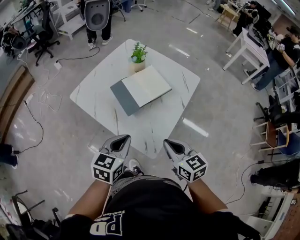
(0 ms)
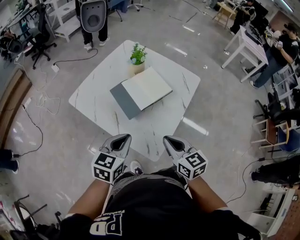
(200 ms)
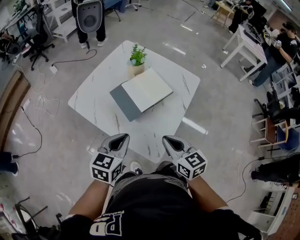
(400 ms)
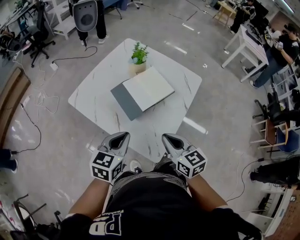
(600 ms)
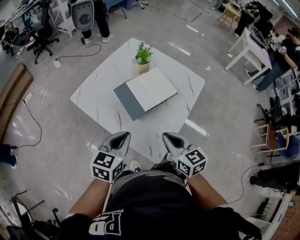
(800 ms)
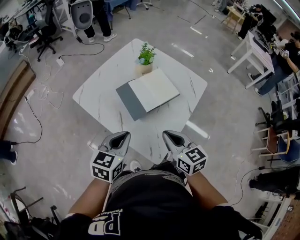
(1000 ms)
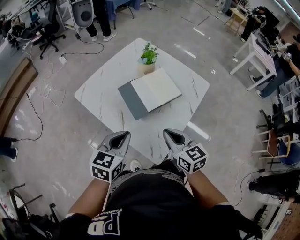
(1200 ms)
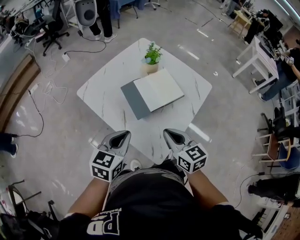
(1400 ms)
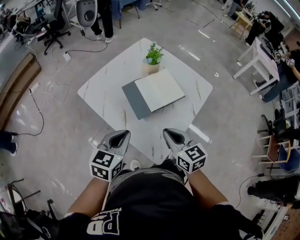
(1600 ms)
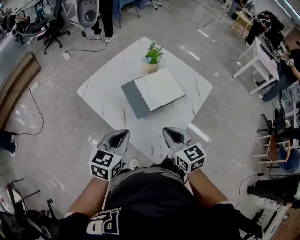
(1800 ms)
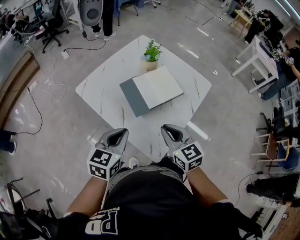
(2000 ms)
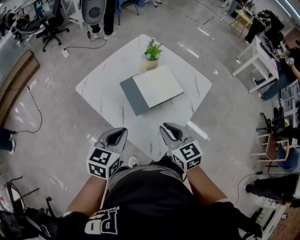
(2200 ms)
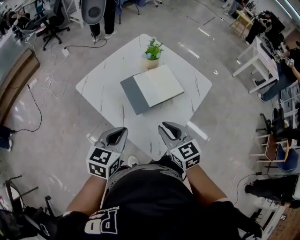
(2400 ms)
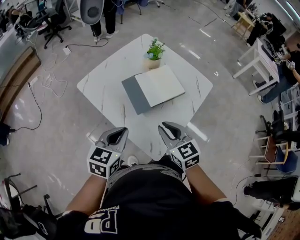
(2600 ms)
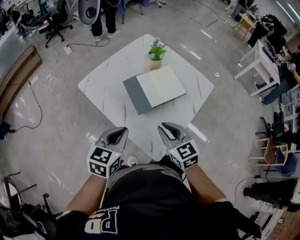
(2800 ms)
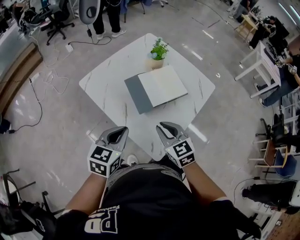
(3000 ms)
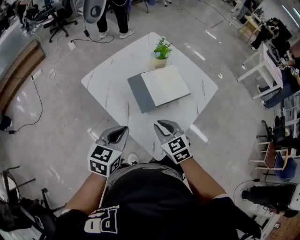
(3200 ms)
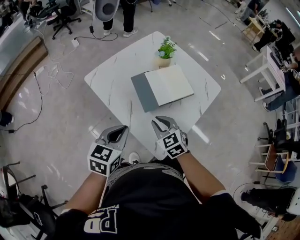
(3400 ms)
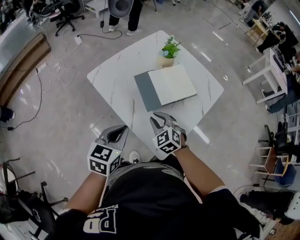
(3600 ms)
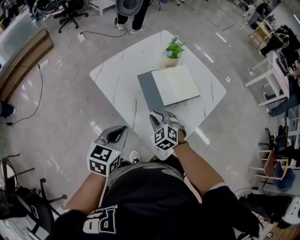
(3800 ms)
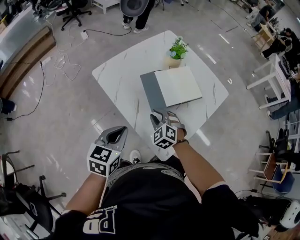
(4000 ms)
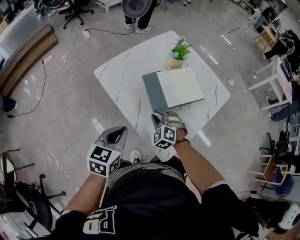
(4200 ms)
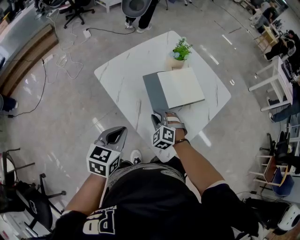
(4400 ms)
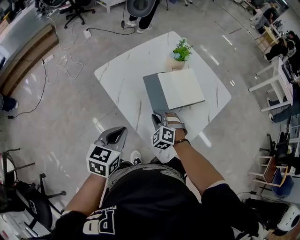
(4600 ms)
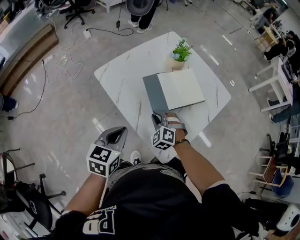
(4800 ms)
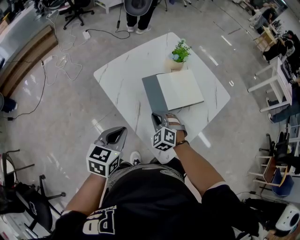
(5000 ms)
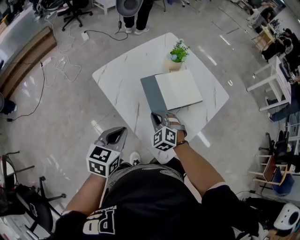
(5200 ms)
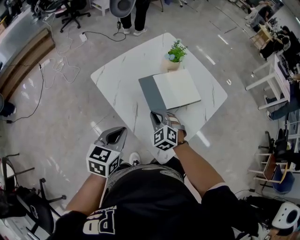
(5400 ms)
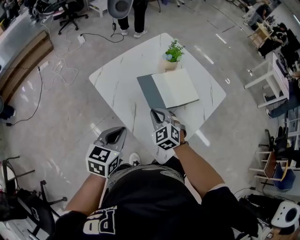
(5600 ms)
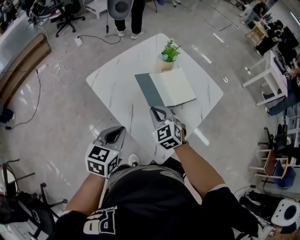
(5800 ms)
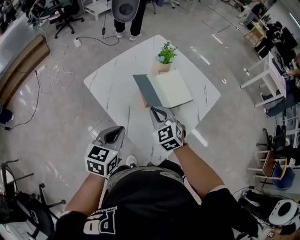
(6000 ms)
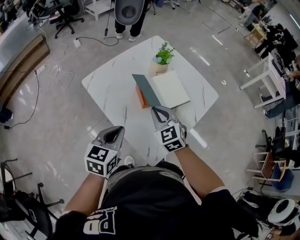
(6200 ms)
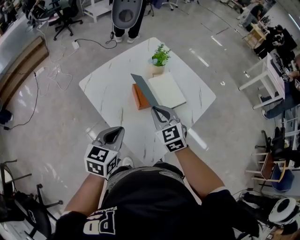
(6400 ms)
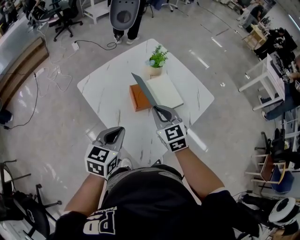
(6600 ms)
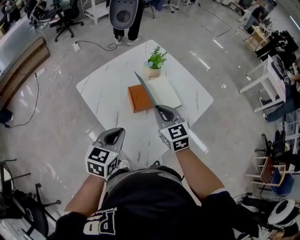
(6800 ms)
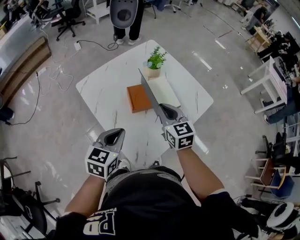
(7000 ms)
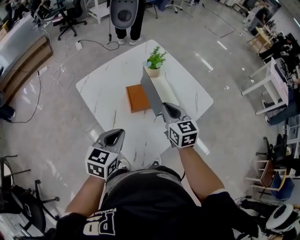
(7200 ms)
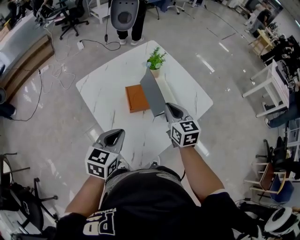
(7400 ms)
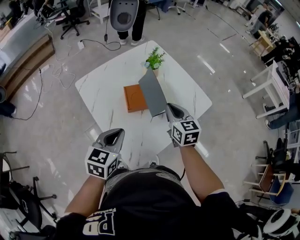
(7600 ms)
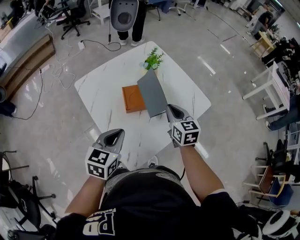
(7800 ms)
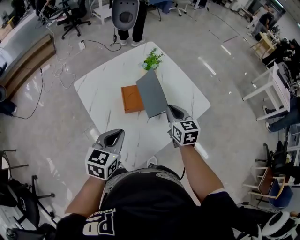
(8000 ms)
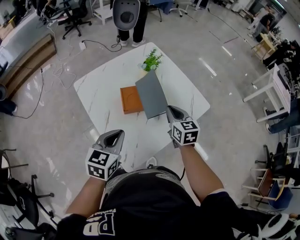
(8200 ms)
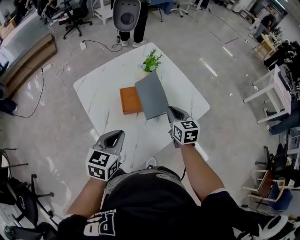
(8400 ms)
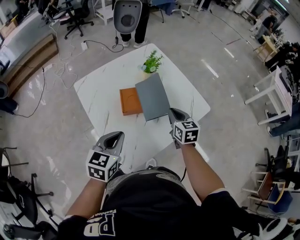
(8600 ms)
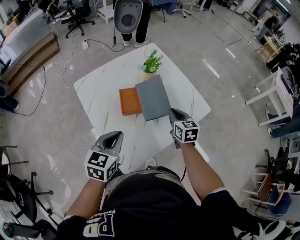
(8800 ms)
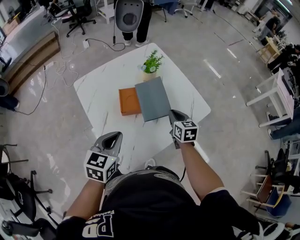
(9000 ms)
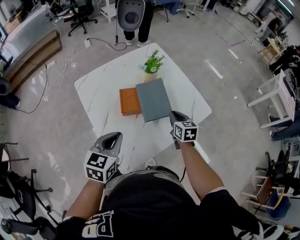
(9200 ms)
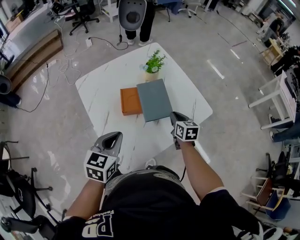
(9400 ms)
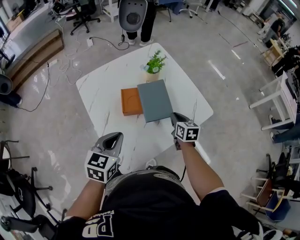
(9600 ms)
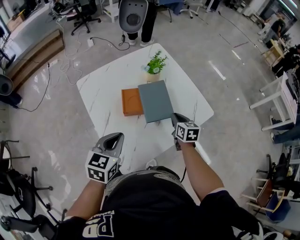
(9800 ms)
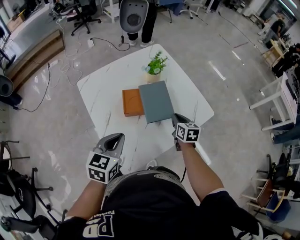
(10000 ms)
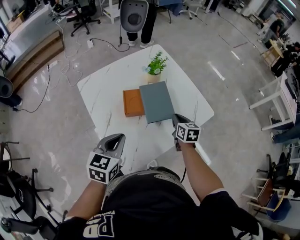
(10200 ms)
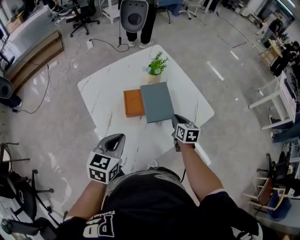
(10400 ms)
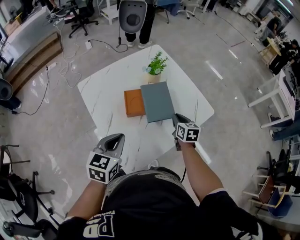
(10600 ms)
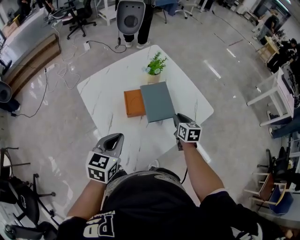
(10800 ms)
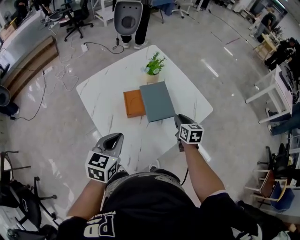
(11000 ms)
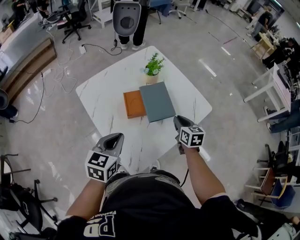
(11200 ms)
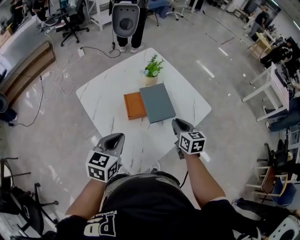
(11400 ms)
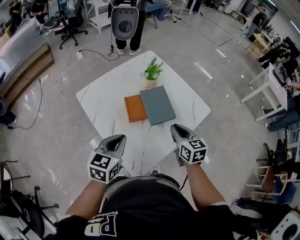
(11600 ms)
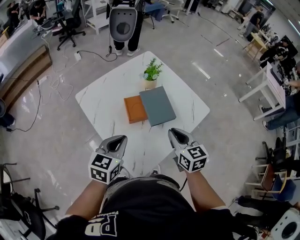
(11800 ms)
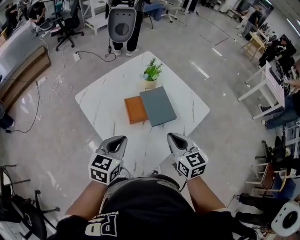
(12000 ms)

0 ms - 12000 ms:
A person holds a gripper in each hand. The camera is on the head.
0 ms - 1600 ms: The right gripper heads forward, covering some 10 cm. The left gripper moves about 5 cm.
1600 ms - 3000 ms: The grippers stay close to where they were, moving slightly.
3000 ms - 4400 ms: The right gripper heads downward, to the left and forward, covering roughly 15 cm, and rotates around the line of its fingers by roughly 40 degrees, counterclockwise from behind; the left gripper heads to the left, covering roughly 5 cm.
4400 ms - 6000 ms: The right gripper is displaced upward by roughly 10 cm, and rotates approximately 30 degrees.
6000 ms - 7600 ms: The left gripper heads to the right, covering about 10 cm. The right gripper moves to the right, roughly 20 cm, and rotates about 30 degrees.
7600 ms - 9000 ms: The right gripper goes approximately 10 cm downward and to the right.
9000 ms - 10400 ms: The grippers make only small movements.
10400 ms - 12000 ms: The right gripper moves upward, backward and to the left, some 20 cm.

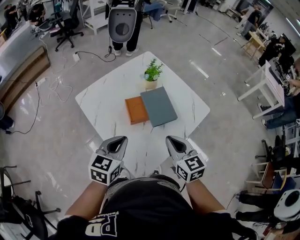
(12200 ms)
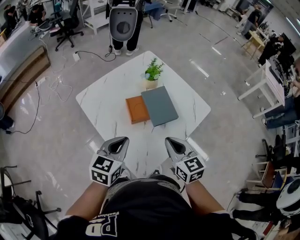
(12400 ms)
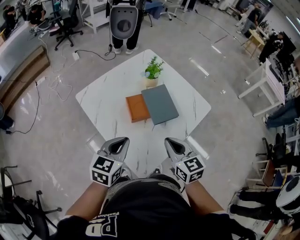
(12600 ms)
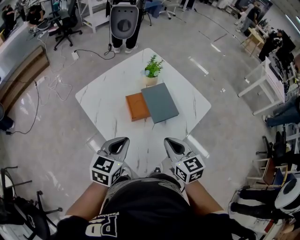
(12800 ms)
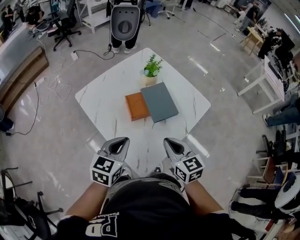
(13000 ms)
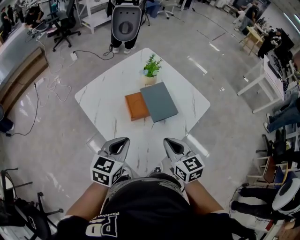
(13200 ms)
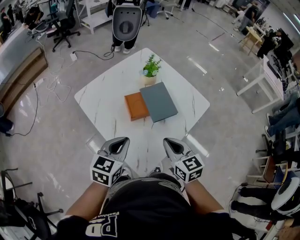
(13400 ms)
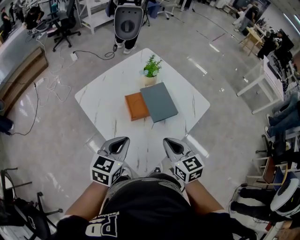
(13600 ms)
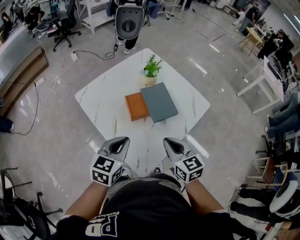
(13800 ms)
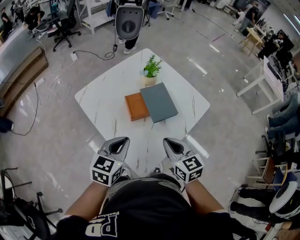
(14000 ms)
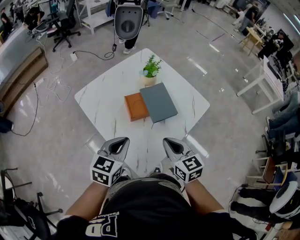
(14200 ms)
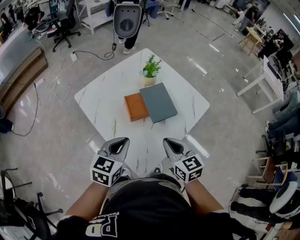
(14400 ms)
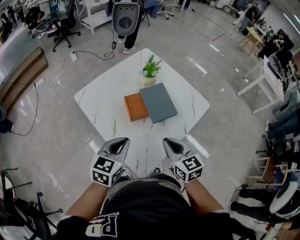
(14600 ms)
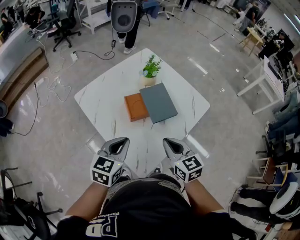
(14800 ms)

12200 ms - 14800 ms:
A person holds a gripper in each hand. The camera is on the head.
12200 ms - 13400 ms: The grippers move only a little.
13400 ms - 14800 ms: Both grippers stay about where they are.

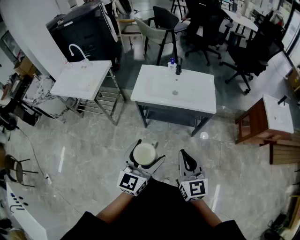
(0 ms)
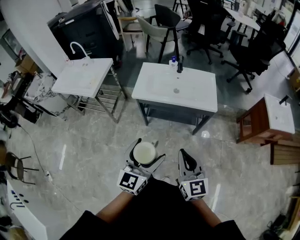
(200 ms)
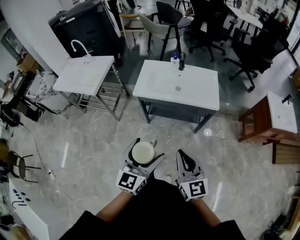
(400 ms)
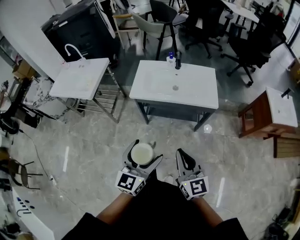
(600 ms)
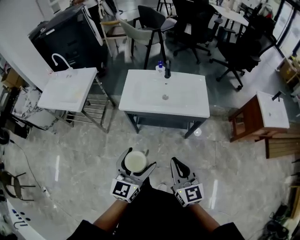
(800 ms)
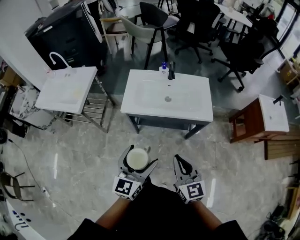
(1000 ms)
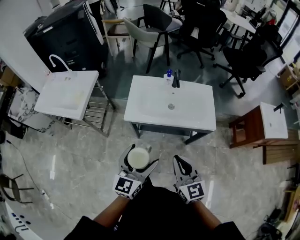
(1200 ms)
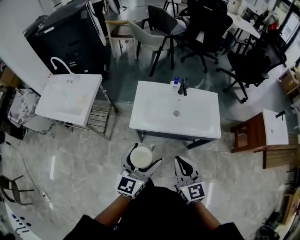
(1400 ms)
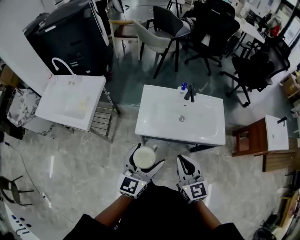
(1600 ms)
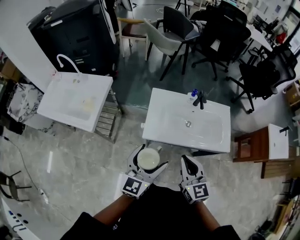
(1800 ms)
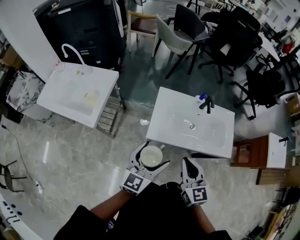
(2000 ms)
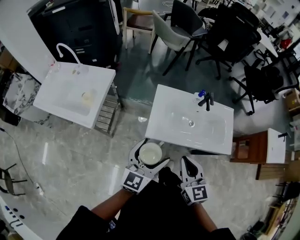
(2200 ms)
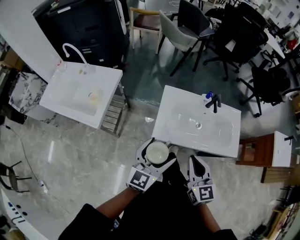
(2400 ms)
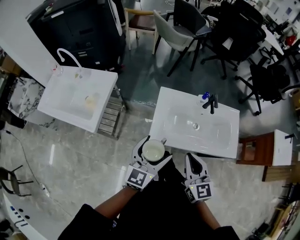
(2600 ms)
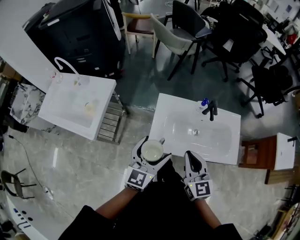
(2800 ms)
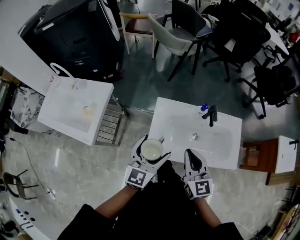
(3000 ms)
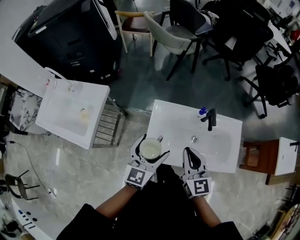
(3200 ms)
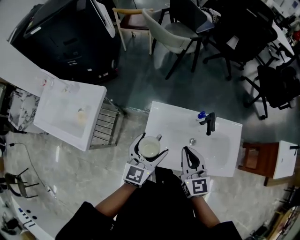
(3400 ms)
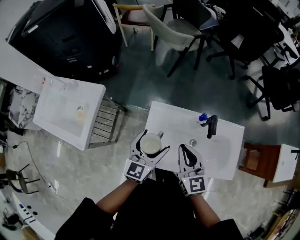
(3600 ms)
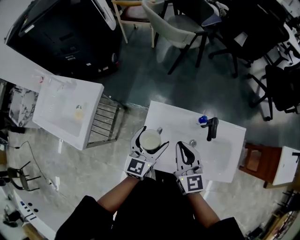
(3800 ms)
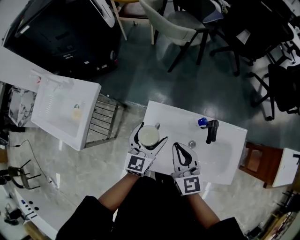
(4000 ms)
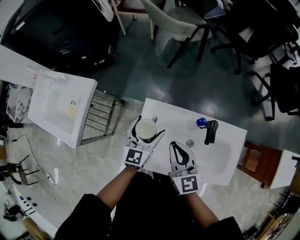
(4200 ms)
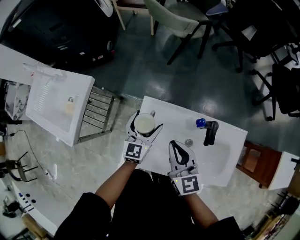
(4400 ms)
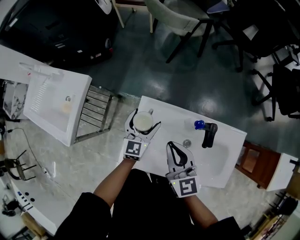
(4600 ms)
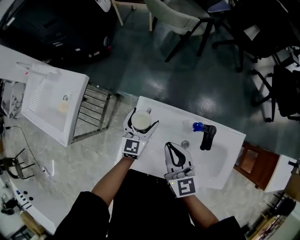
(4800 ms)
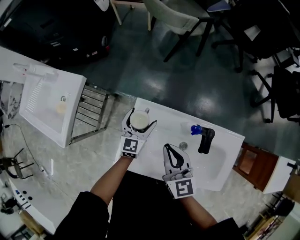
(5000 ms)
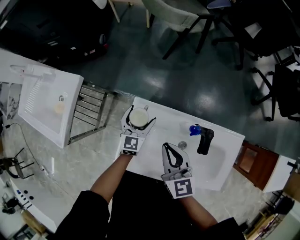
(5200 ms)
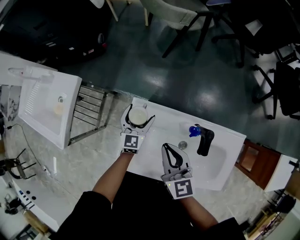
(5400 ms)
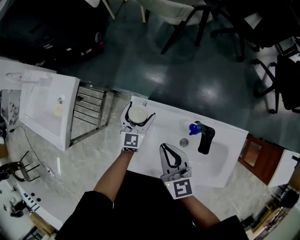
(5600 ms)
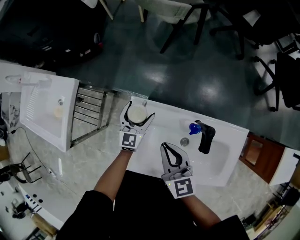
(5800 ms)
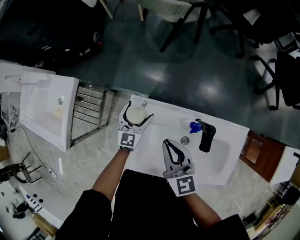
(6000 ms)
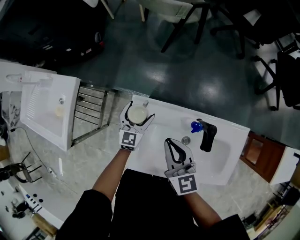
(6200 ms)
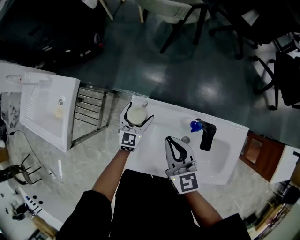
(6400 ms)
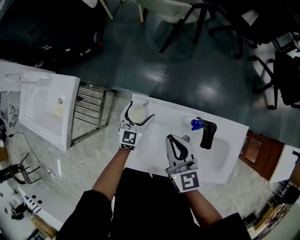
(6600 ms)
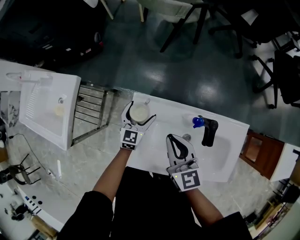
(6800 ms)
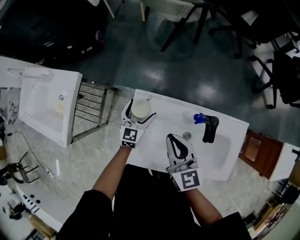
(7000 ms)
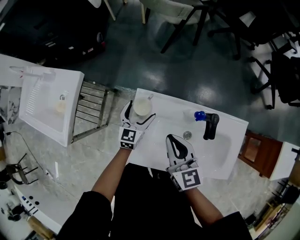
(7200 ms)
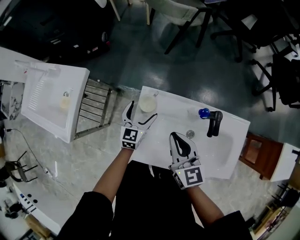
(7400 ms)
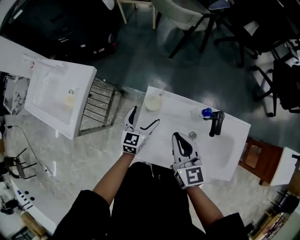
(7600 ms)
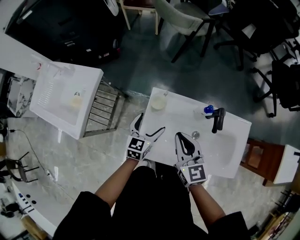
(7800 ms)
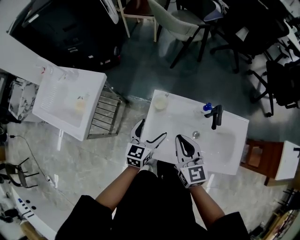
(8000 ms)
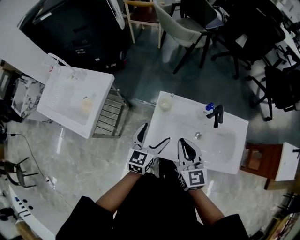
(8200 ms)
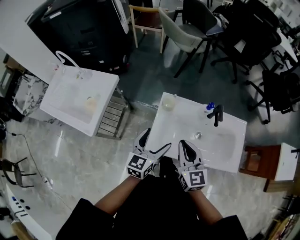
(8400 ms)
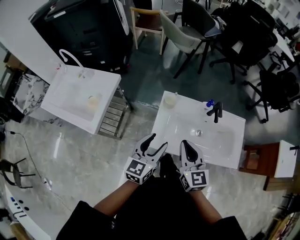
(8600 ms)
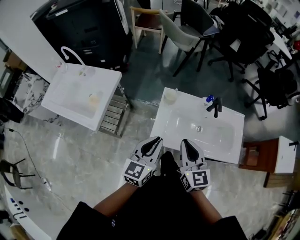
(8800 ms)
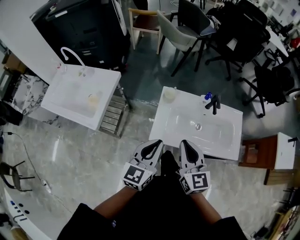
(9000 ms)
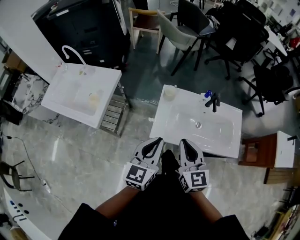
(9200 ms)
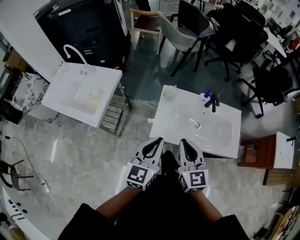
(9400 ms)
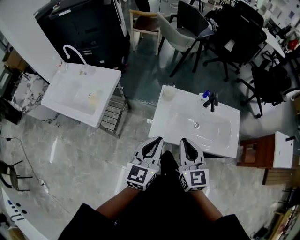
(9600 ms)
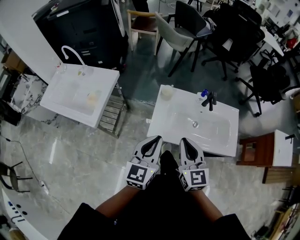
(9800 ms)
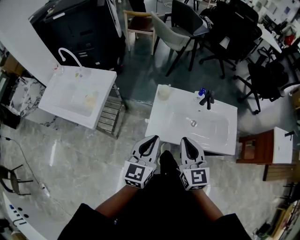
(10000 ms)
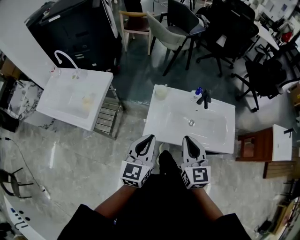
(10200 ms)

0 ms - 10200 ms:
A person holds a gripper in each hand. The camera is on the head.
0 ms - 1400 ms: The right gripper heads forward and to the left, covering roughly 25 cm. Meanwhile the left gripper shifts some 25 cm forward.
1400 ms - 3000 ms: Both grippers move forward, approximately 25 cm.
3000 ms - 4400 ms: The grippers both shift forward and downward by some 25 cm.
4400 ms - 5800 ms: The left gripper heads downward and forward, covering roughly 10 cm, while the right gripper changes place by about 5 cm.
5800 ms - 7200 ms: The left gripper shifts by approximately 5 cm.
7200 ms - 8800 ms: The right gripper shifts about 25 cm backward and upward. Meanwhile the left gripper is displaced backward and upward by about 40 cm, and closes.
8800 ms - 10200 ms: The right gripper moves some 5 cm.
